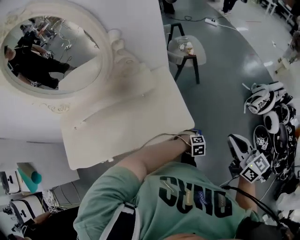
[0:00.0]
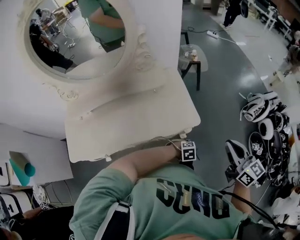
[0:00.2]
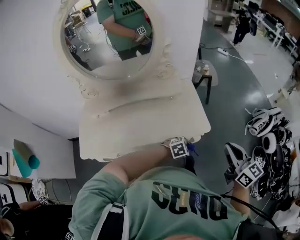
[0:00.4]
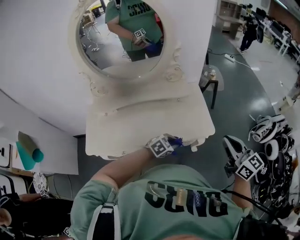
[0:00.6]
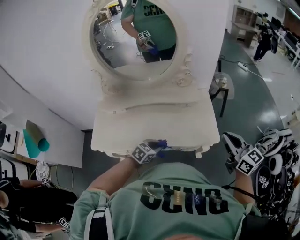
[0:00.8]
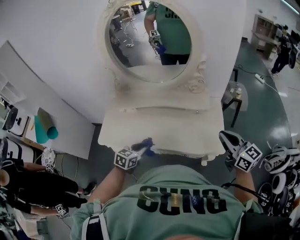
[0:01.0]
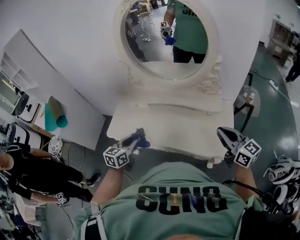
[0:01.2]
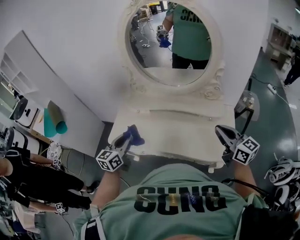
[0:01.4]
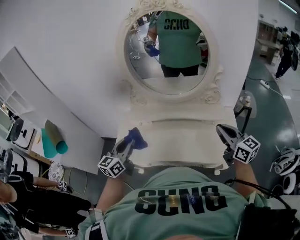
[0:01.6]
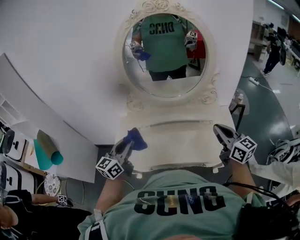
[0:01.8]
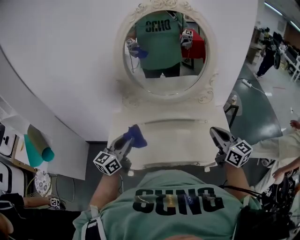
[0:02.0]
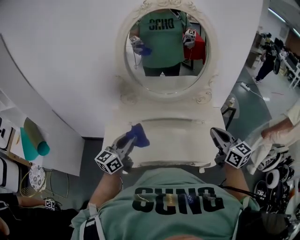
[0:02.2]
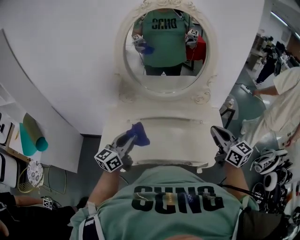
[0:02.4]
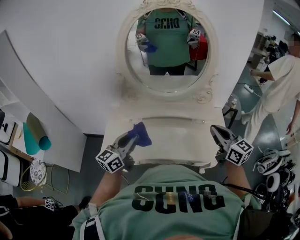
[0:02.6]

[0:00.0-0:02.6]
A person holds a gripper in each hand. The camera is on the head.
0:00.0 to 0:01.2: The right gripper shifts by about 30 cm, and turns by roughly 40 degrees, while the left gripper ends up some 70 cm from where it was, and points its fingers roughly 50 degrees further upward.
0:01.2 to 0:02.6: The left gripper is displaced upward, forward and to the left by some 10 cm, and changes its angle by approximately 30 degrees, while the right gripper is displaced to the left by about 10 cm.

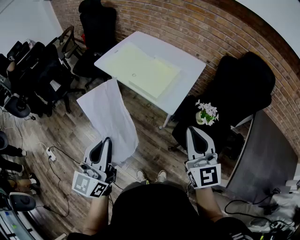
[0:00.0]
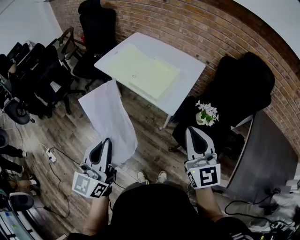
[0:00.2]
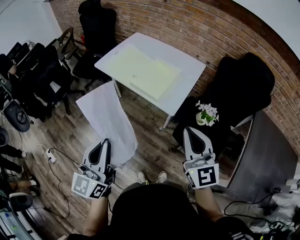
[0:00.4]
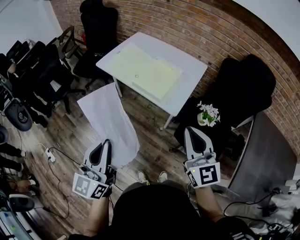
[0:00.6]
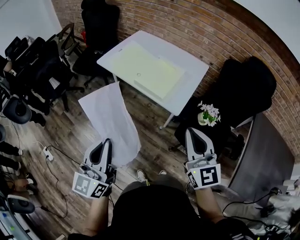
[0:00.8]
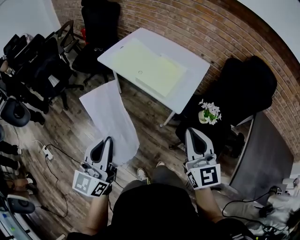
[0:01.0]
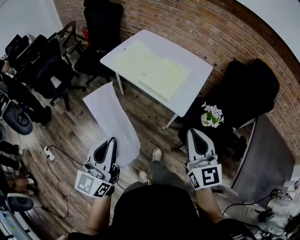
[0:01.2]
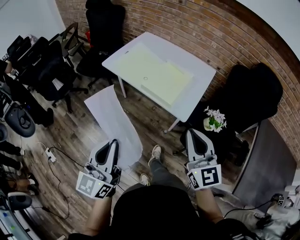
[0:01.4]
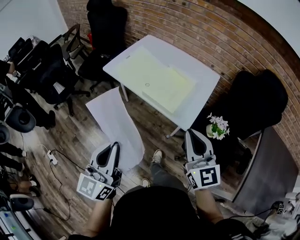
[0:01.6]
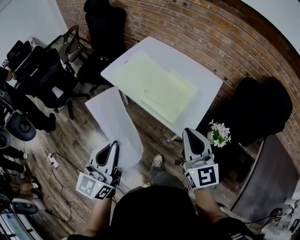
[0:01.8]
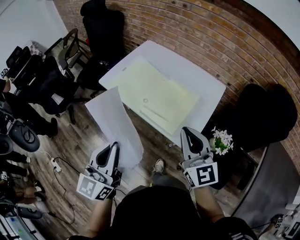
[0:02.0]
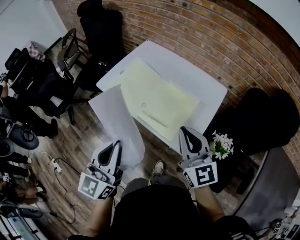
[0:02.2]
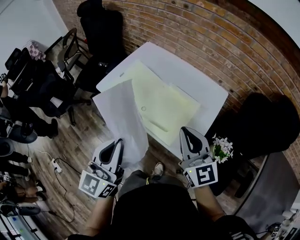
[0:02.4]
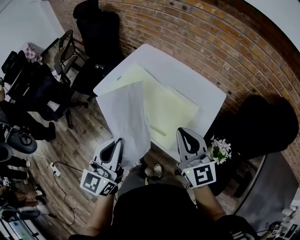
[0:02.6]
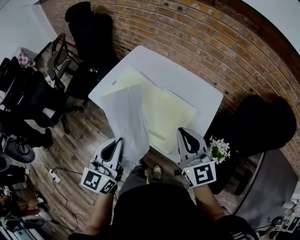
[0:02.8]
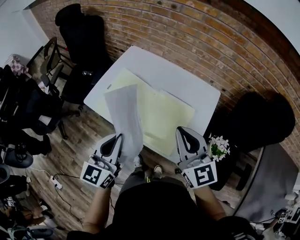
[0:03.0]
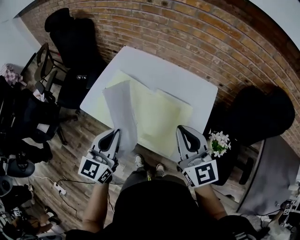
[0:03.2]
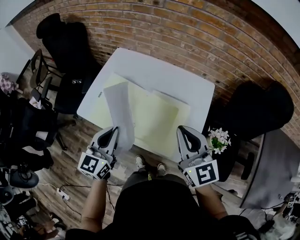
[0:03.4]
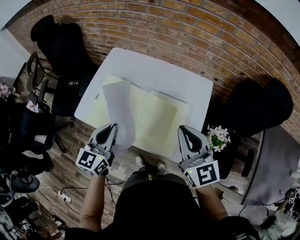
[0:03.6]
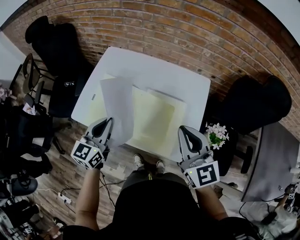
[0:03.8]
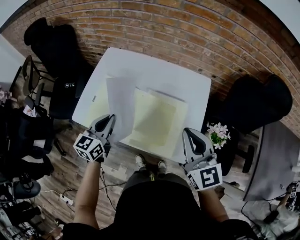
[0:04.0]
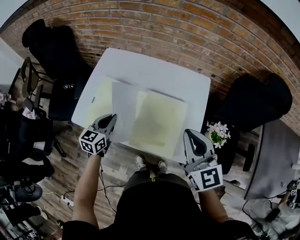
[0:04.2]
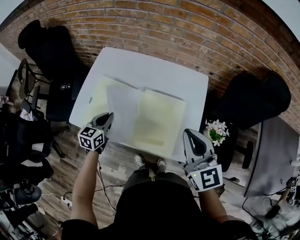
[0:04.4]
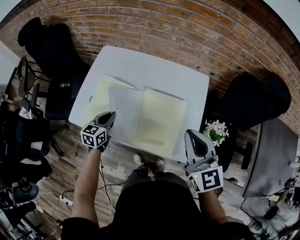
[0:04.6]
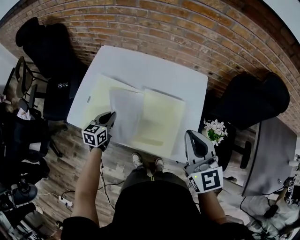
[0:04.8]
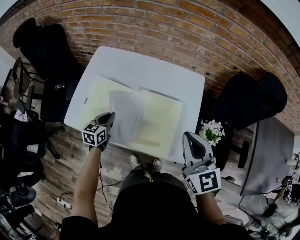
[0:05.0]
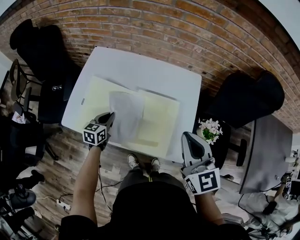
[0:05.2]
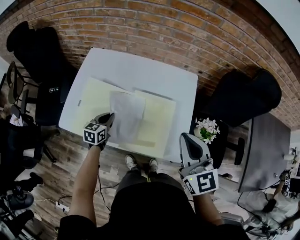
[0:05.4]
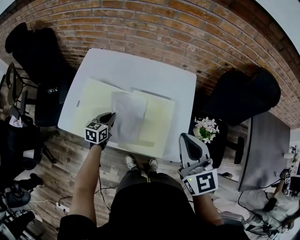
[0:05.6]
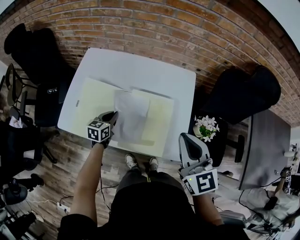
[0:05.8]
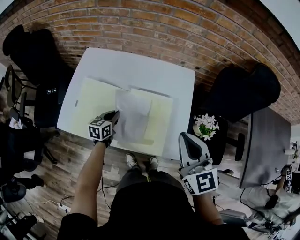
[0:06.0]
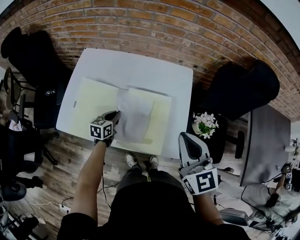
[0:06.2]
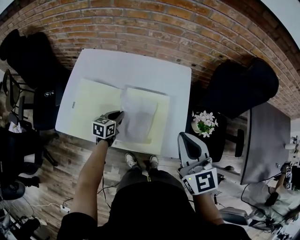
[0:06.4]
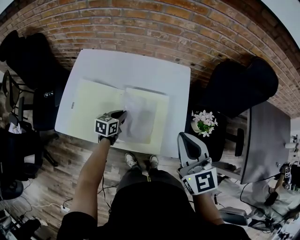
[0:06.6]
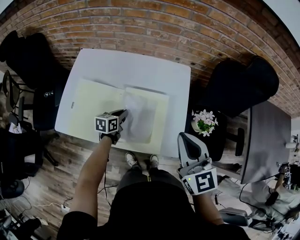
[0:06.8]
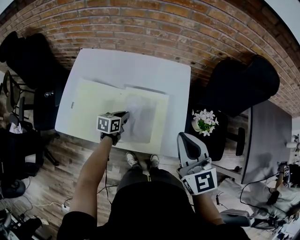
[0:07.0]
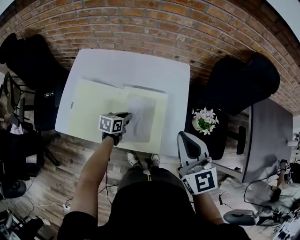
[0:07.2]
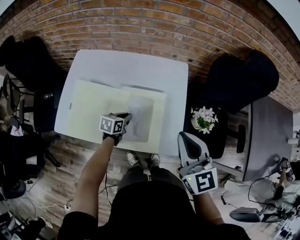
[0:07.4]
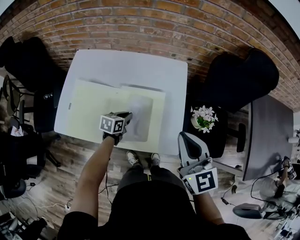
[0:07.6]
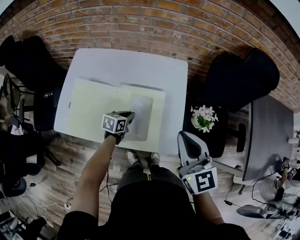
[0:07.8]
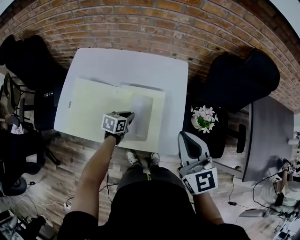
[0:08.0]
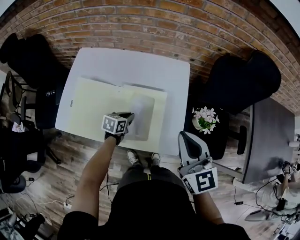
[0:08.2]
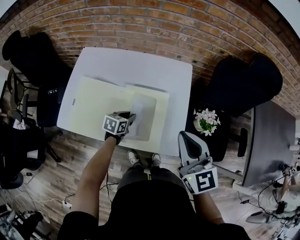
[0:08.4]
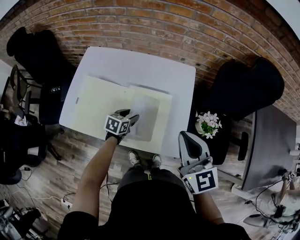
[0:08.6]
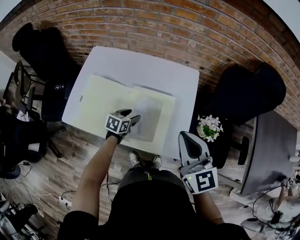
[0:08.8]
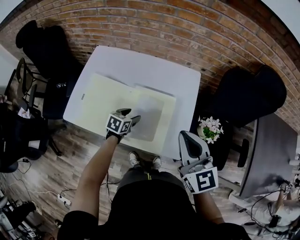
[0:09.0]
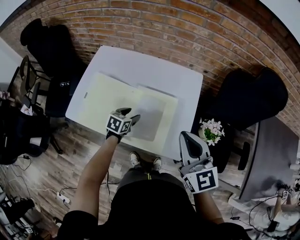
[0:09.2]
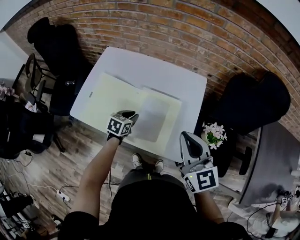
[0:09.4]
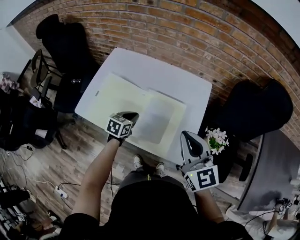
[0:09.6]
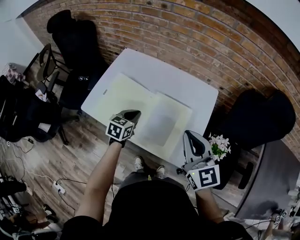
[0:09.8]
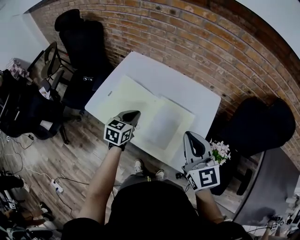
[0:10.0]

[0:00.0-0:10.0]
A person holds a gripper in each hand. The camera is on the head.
0:00.0 to 0:01.4: Both grippers travel together to the left, approximately 5 cm.
0:01.4 to 0:02.8: The two grippers go roughly 30 cm forward.
0:02.8 to 0:04.2: The right gripper changes place by some 5 cm, while the left gripper moves forward and downward, some 30 cm, and turns by roughly 30 degrees.
0:04.2 to 0:05.8: The left gripper goes some 15 cm downward, to the right and forward.
0:05.8 to 0:07.2: The left gripper heads to the right, covering some 10 cm.
0:07.2 to 0:08.6: The left gripper opens its fingers.
0:08.6 to 0:10.0: The right gripper is displaced to the left by approximately 5 cm, while the left gripper moves upward and to the left, roughly 20 cm, changes its angle by some 30 degrees, and closes.

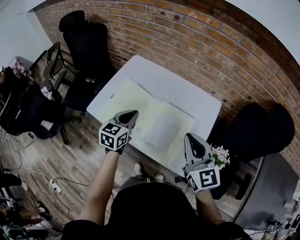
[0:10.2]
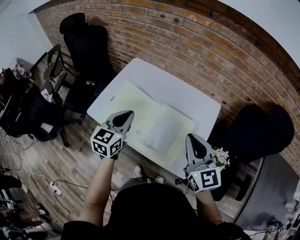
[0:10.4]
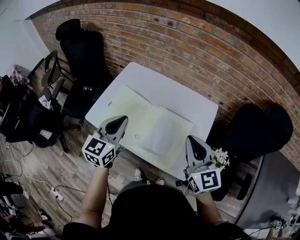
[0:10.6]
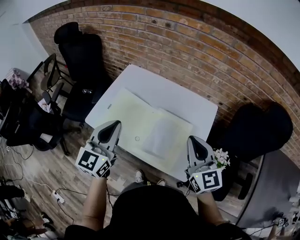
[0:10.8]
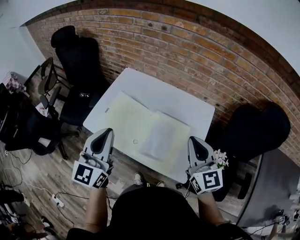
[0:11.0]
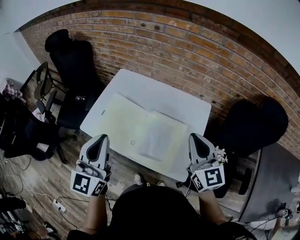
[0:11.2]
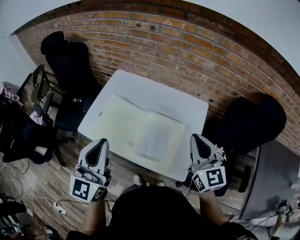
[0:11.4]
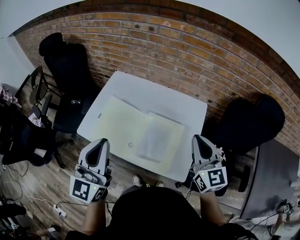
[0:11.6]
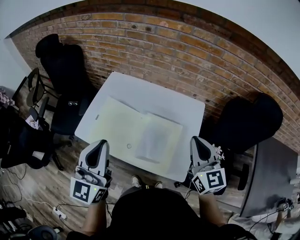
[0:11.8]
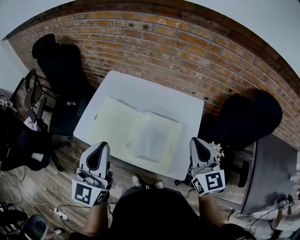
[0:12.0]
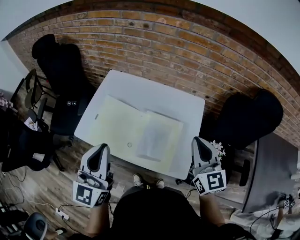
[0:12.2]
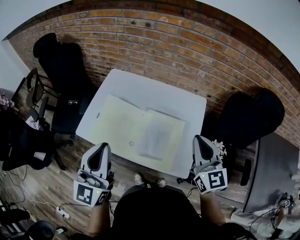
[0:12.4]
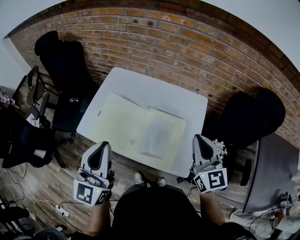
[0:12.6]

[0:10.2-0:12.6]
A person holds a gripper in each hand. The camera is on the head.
0:10.2 to 0:11.4: The right gripper travels to the right by about 5 cm. Meanwhile the left gripper shifts roughly 20 cm upward and backward, and rotates roughly 30 degrees.
0:11.4 to 0:12.6: Both grippers stay about where they are.

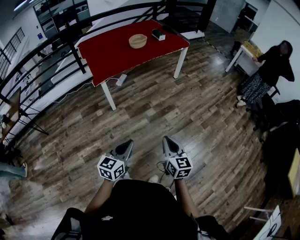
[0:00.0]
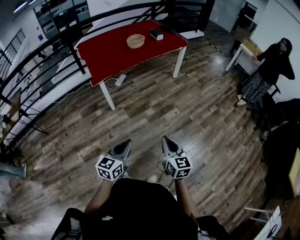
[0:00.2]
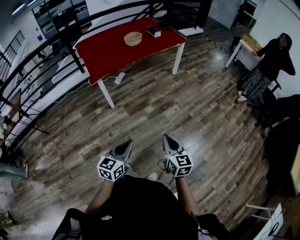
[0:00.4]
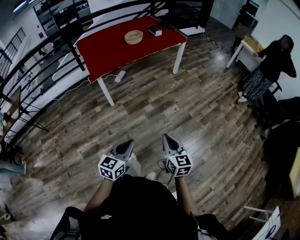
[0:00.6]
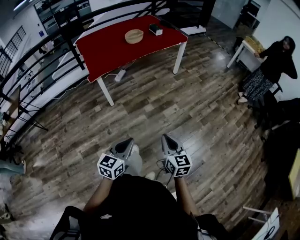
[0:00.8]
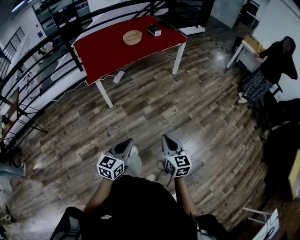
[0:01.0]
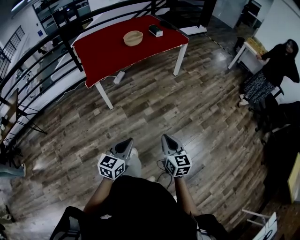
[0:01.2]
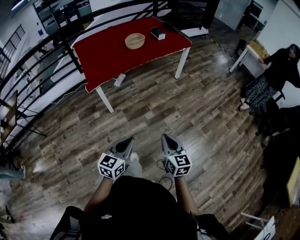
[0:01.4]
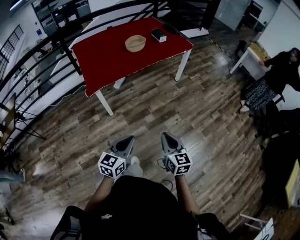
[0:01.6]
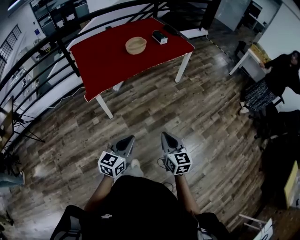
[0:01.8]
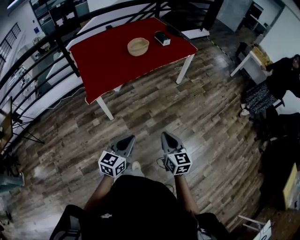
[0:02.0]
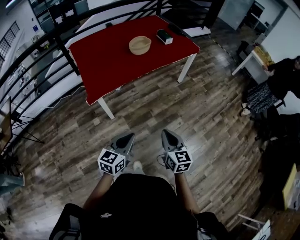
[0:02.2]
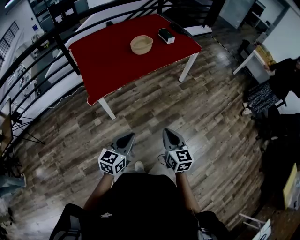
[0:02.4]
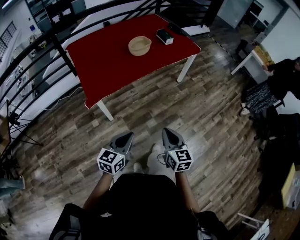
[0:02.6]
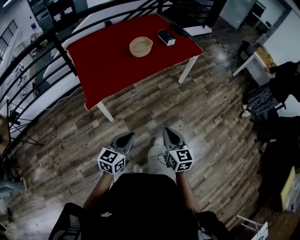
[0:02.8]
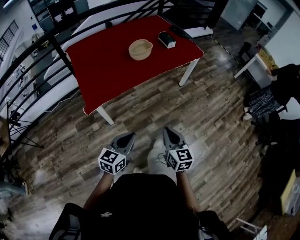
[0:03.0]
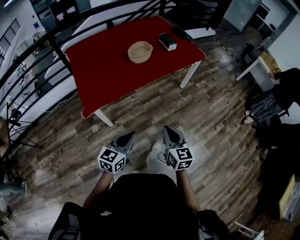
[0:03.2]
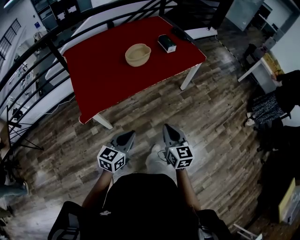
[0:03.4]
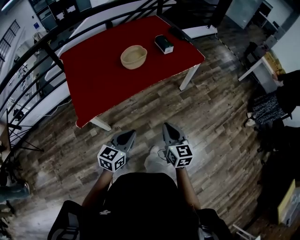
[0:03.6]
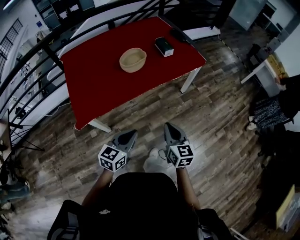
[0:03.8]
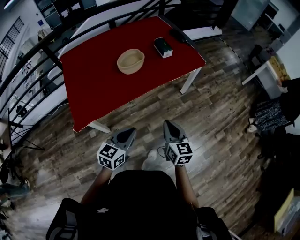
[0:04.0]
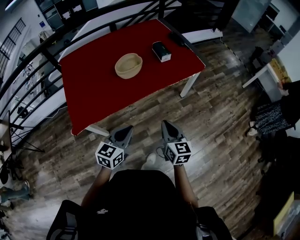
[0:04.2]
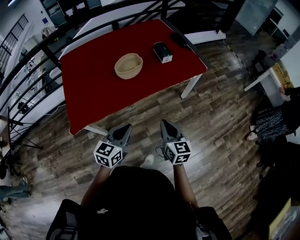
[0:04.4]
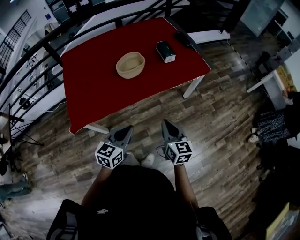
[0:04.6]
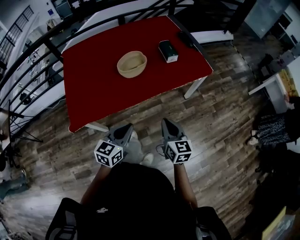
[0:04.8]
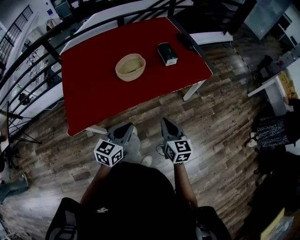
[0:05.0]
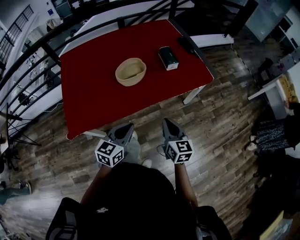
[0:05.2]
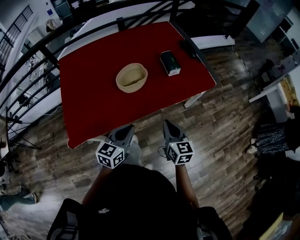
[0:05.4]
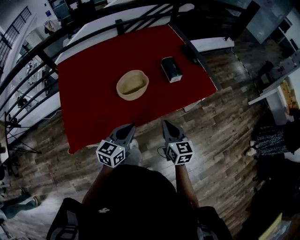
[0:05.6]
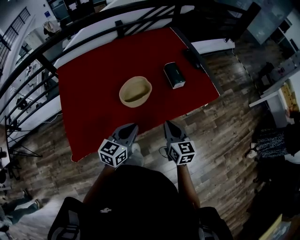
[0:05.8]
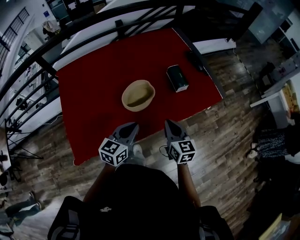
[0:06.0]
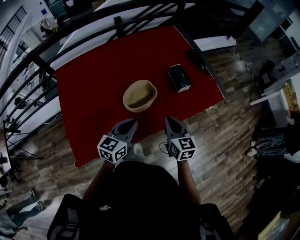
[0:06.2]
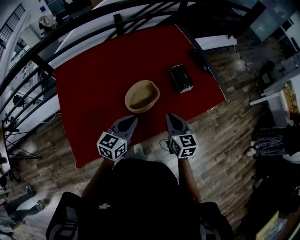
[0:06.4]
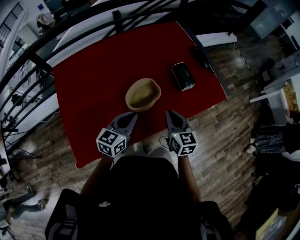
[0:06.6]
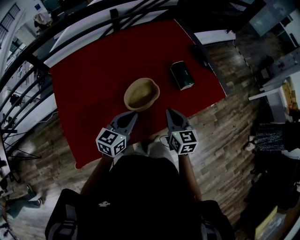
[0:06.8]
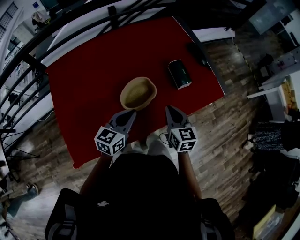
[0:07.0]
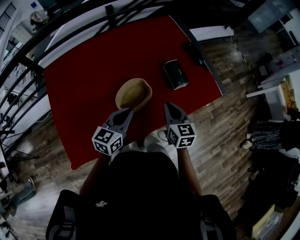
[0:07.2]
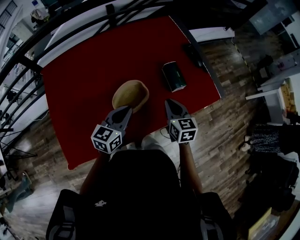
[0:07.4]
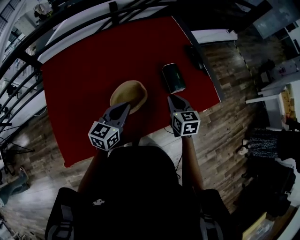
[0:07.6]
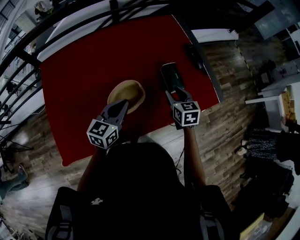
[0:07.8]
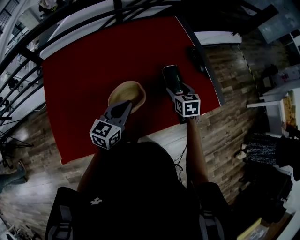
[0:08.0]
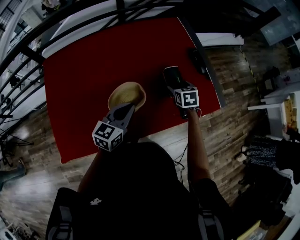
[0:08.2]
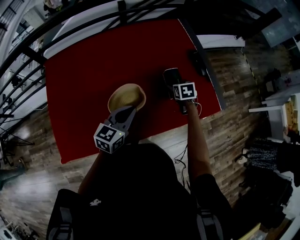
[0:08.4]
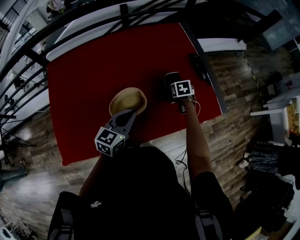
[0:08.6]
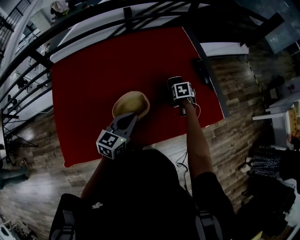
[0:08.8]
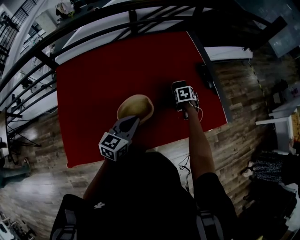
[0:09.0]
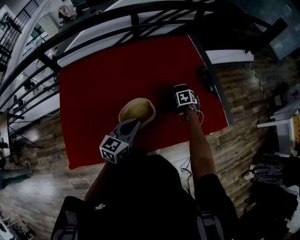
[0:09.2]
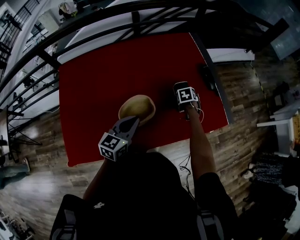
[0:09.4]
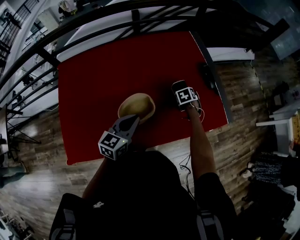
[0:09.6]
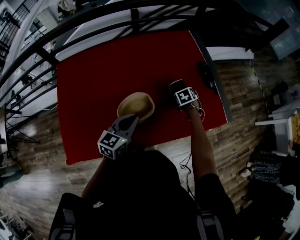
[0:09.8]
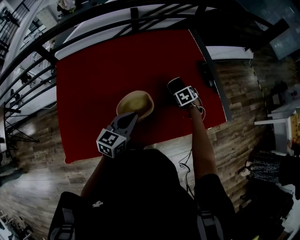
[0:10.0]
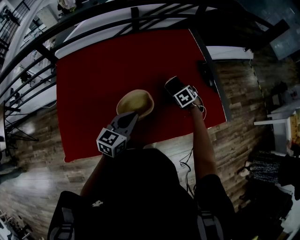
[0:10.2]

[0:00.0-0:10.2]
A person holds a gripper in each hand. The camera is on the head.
0:00.0 to 0:01.4: The two grippers go roughly 15 cm forward.
0:01.4 to 0:03.0: The two grippers go approximately 30 cm forward and to the left.
0:03.0 to 0:04.4: Both grippers travel together forward, some 30 cm.
0:04.4 to 0:05.8: The two grippers go roughly 25 cm forward.
0:05.8 to 0:07.2: Both grippers move forward, some 15 cm.
0:07.2 to 0:08.8: The right gripper moves forward and downward, about 30 cm, points its fingers some 40 degrees further downward, and opens; the left gripper is displaced forward by approximately 5 cm.
0:08.8 to 0:10.2: The right gripper moves about 5 cm, and turns by approximately 30 degrees.
